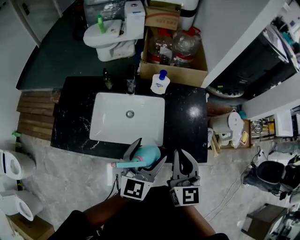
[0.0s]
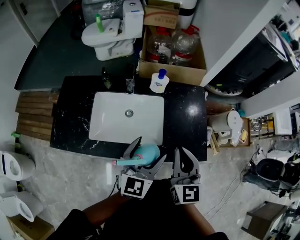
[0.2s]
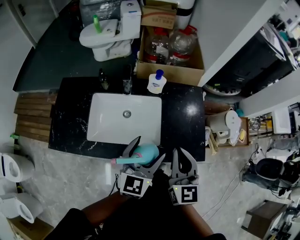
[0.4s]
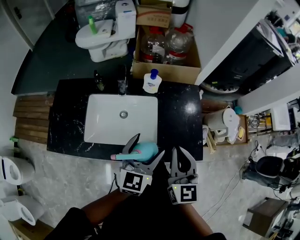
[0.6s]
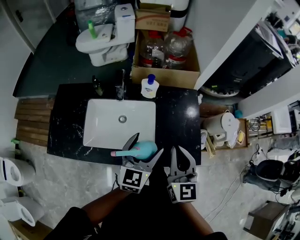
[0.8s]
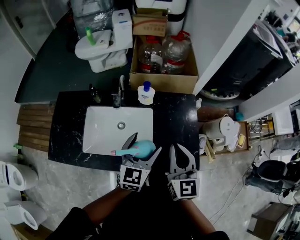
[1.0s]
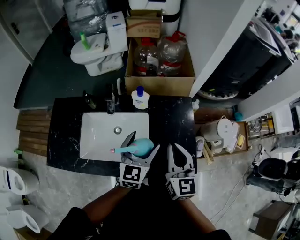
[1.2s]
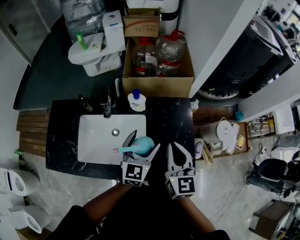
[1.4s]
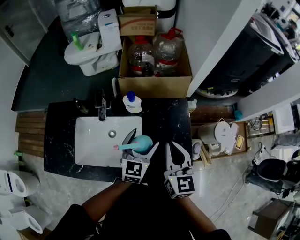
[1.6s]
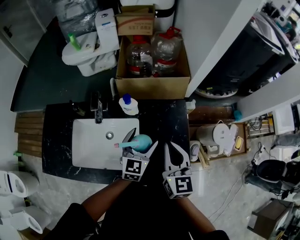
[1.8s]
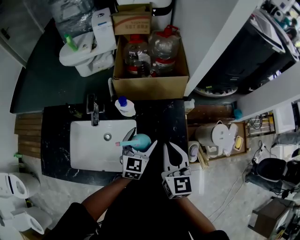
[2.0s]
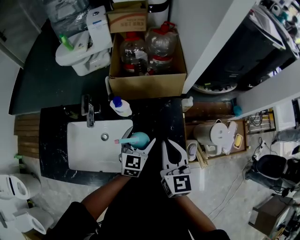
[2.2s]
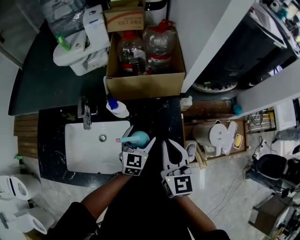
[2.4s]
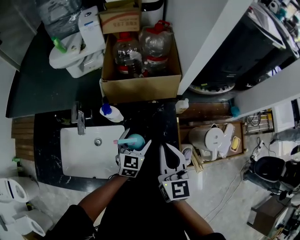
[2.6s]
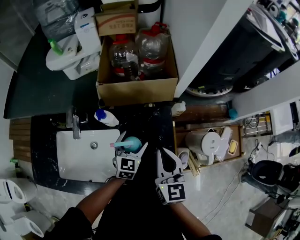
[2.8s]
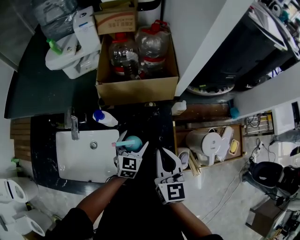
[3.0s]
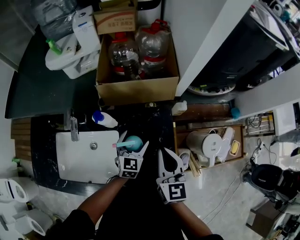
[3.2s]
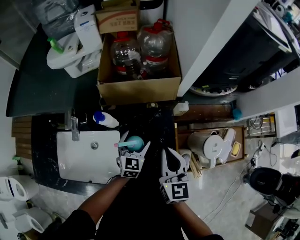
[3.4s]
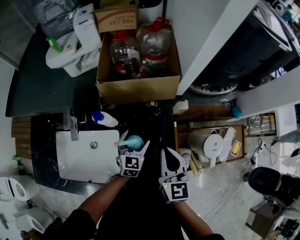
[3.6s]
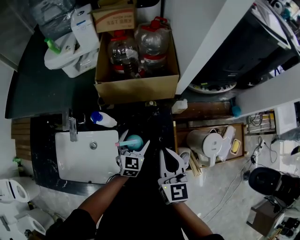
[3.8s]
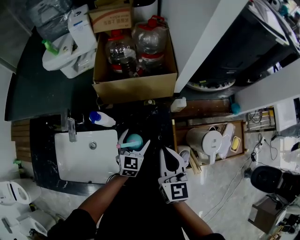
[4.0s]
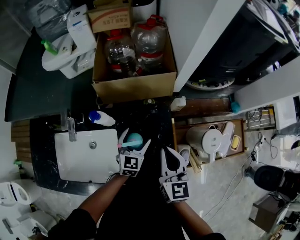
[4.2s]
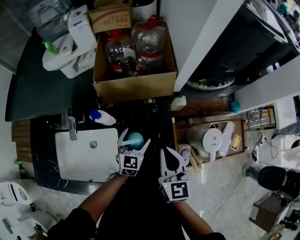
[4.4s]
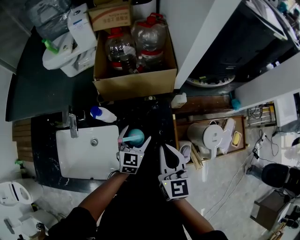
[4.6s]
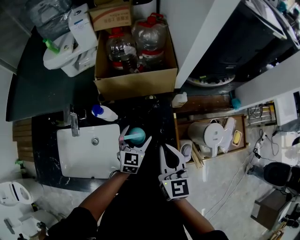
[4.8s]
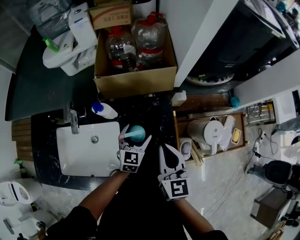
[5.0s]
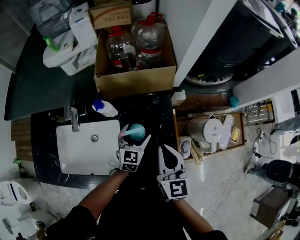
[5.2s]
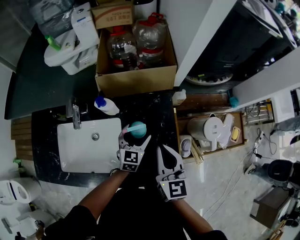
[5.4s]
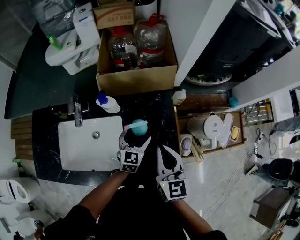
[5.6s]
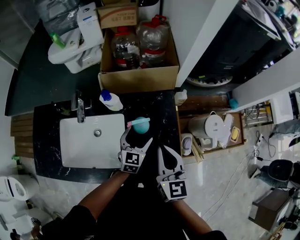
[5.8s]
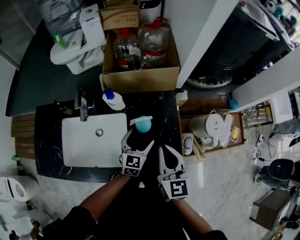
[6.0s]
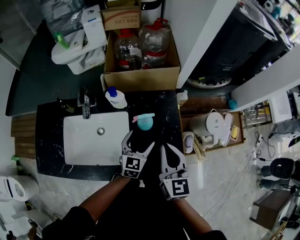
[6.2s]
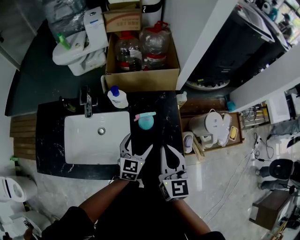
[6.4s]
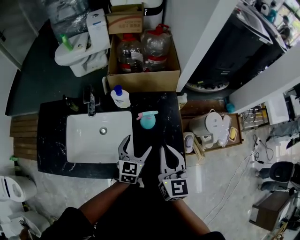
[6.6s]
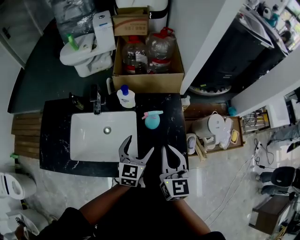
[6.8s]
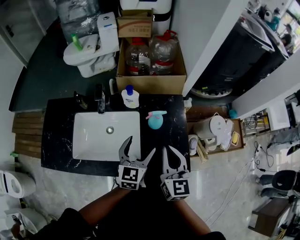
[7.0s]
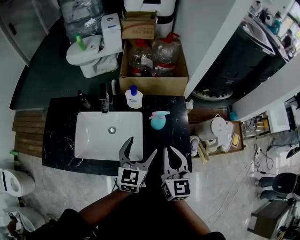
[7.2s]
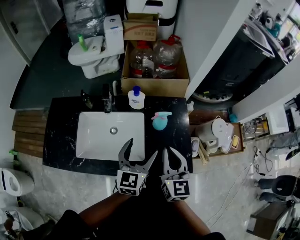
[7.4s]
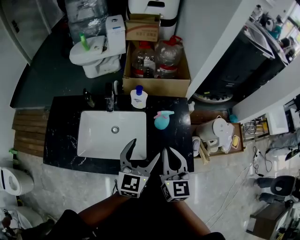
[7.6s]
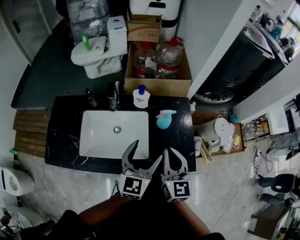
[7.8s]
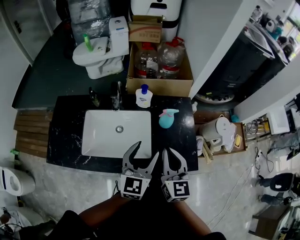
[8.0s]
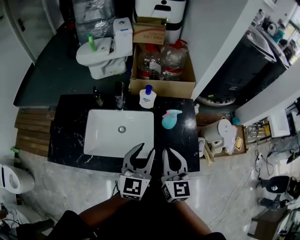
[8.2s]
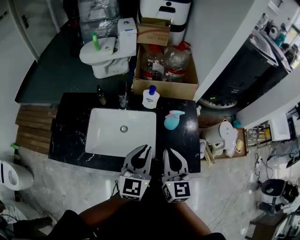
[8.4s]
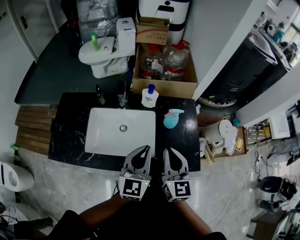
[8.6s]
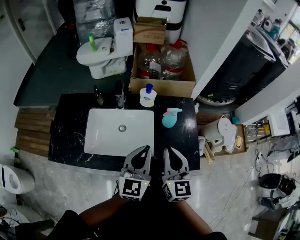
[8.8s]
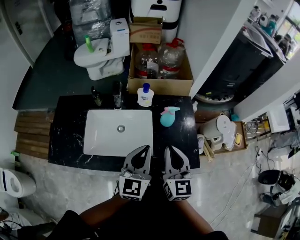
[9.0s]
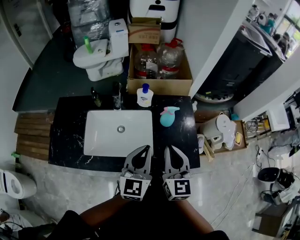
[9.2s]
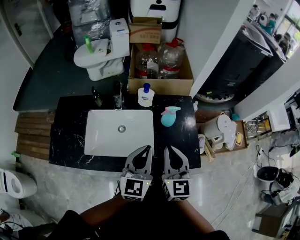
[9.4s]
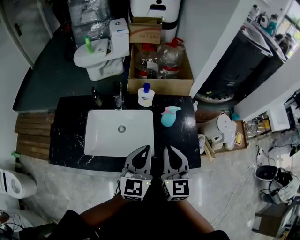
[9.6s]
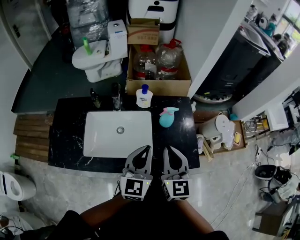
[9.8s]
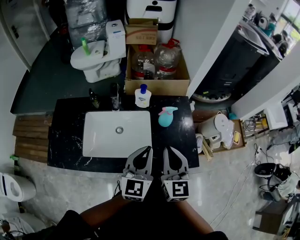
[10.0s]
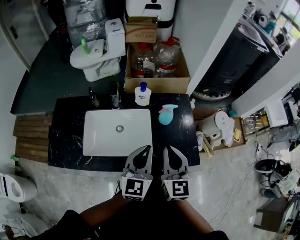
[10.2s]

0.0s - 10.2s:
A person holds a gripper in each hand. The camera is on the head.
0.0s - 1.4s: Both grippers travel together forward and to the right, roughly 15 cm.
1.4s - 3.0s: The right gripper shifts some 15 cm forward and to the right; the left gripper goes approximately 20 cm downward, forward and to the right.
3.0s - 4.4s: There are only small adjustments of the grippers.
4.4s - 5.8s: The two grippers go about 10 cm backward.
5.8s - 7.2s: The right gripper goes some 10 cm backward and to the left; the left gripper shifts roughly 20 cm upward, backward and to the left.
7.2s - 8.8s: The right gripper heads to the left, covering about 5 cm; the left gripper heads backward, upward and to the left, covering some 10 cm, and closes.
8.8s - 10.2s: The grippers make only small movements.

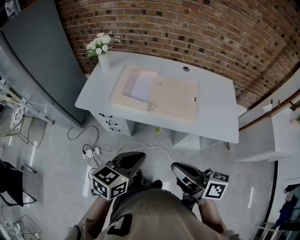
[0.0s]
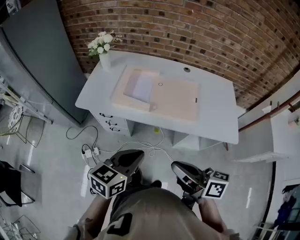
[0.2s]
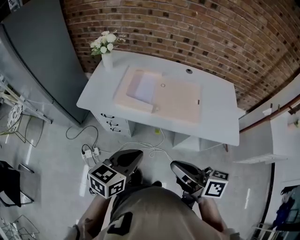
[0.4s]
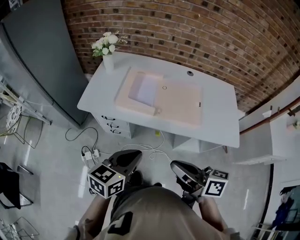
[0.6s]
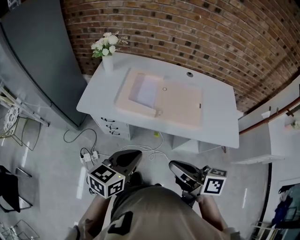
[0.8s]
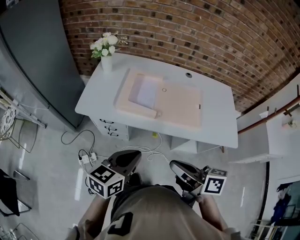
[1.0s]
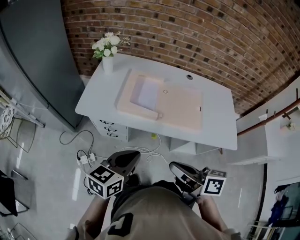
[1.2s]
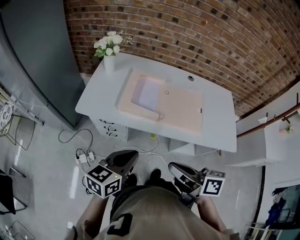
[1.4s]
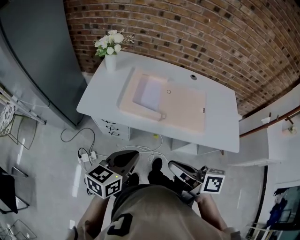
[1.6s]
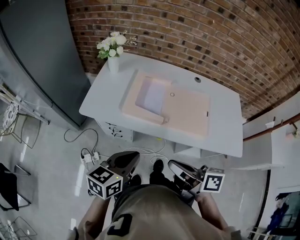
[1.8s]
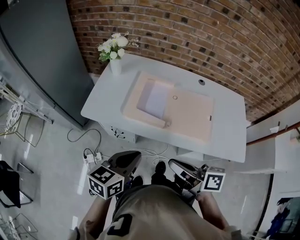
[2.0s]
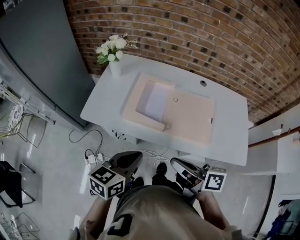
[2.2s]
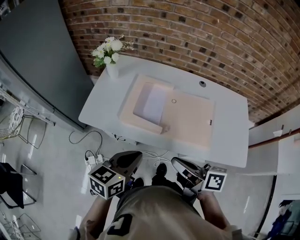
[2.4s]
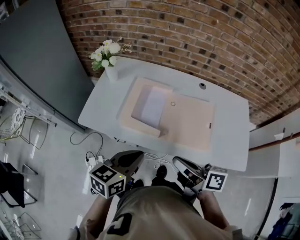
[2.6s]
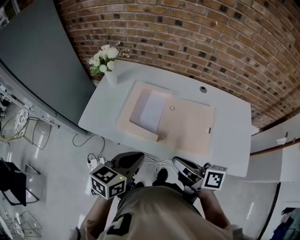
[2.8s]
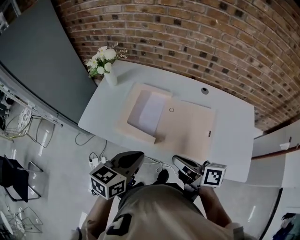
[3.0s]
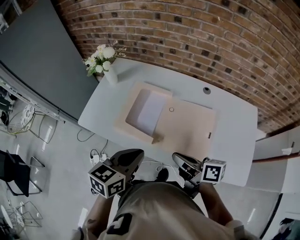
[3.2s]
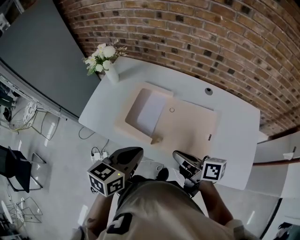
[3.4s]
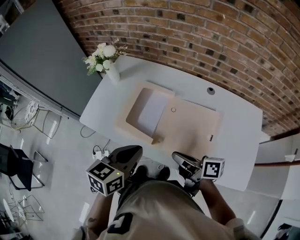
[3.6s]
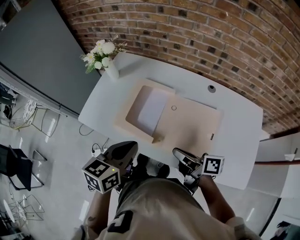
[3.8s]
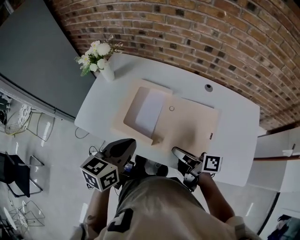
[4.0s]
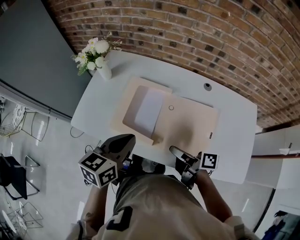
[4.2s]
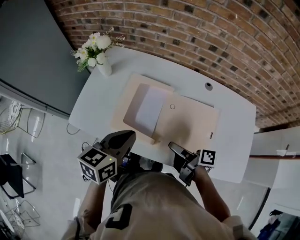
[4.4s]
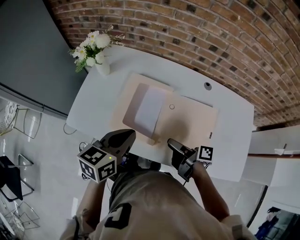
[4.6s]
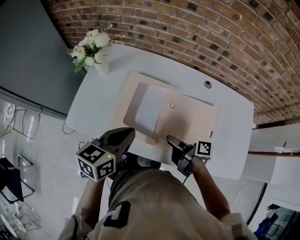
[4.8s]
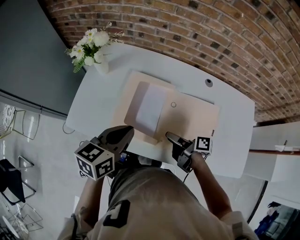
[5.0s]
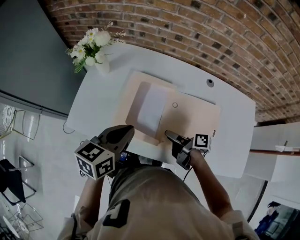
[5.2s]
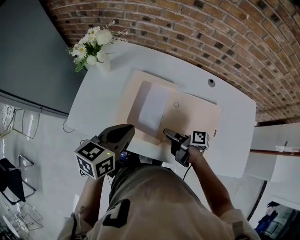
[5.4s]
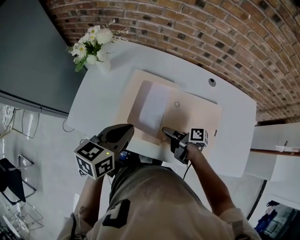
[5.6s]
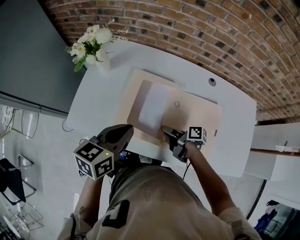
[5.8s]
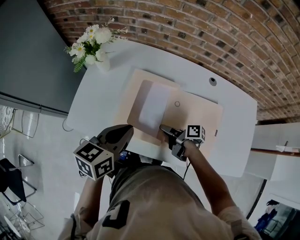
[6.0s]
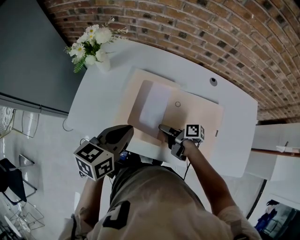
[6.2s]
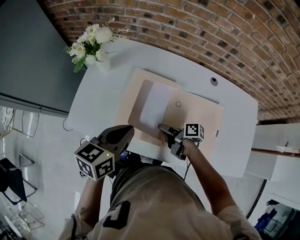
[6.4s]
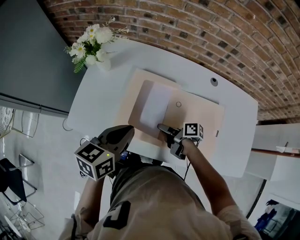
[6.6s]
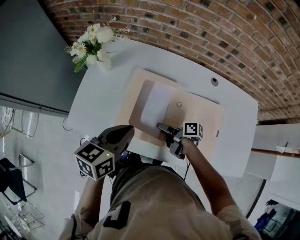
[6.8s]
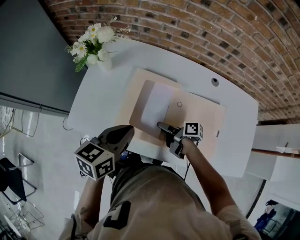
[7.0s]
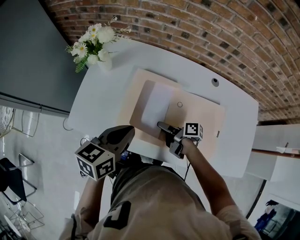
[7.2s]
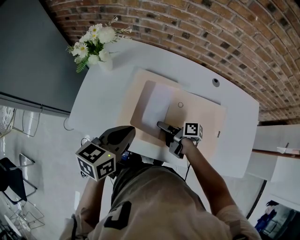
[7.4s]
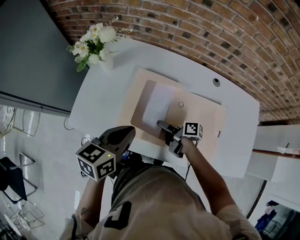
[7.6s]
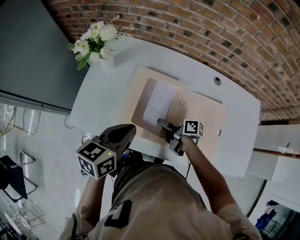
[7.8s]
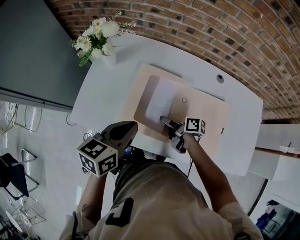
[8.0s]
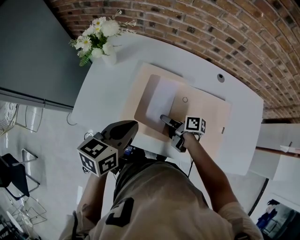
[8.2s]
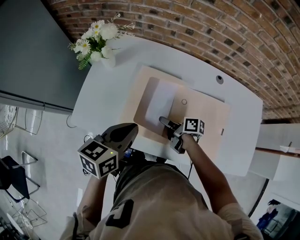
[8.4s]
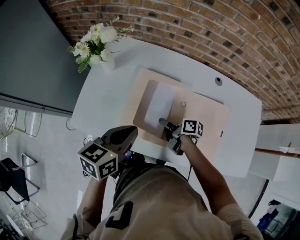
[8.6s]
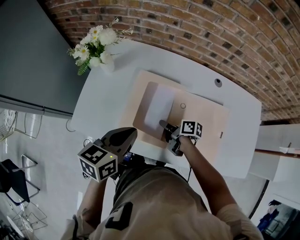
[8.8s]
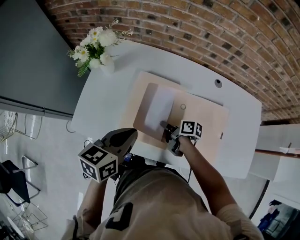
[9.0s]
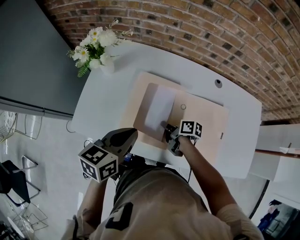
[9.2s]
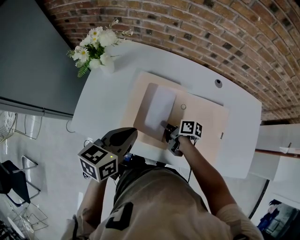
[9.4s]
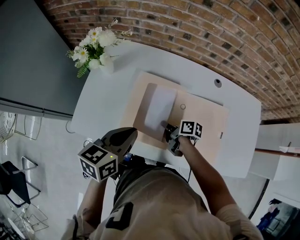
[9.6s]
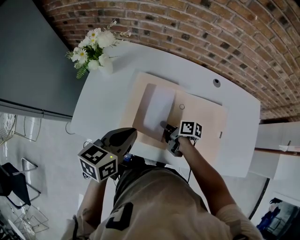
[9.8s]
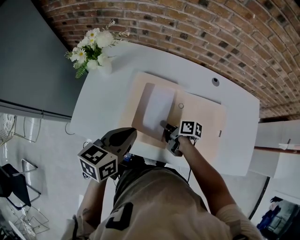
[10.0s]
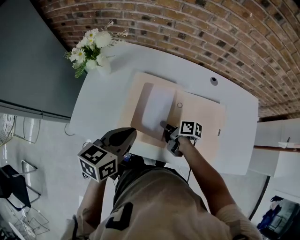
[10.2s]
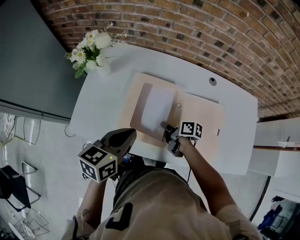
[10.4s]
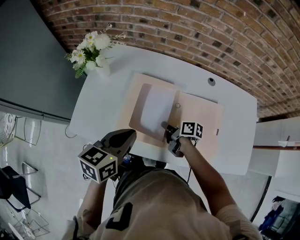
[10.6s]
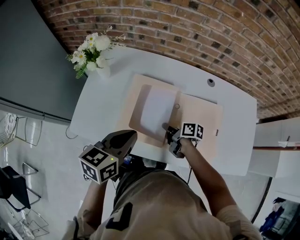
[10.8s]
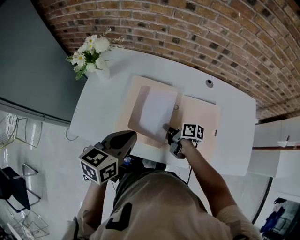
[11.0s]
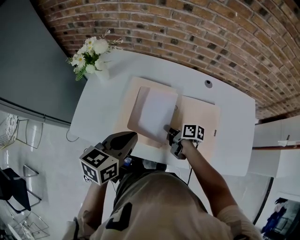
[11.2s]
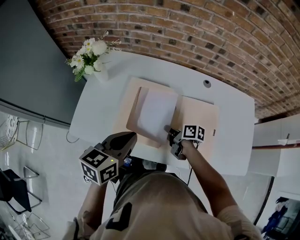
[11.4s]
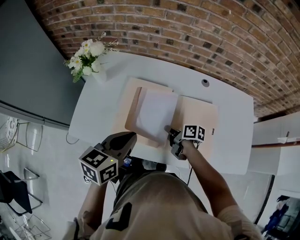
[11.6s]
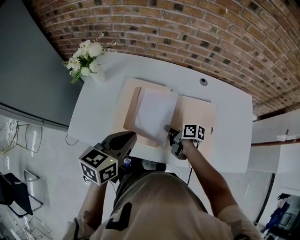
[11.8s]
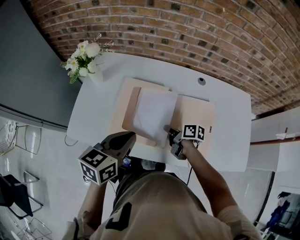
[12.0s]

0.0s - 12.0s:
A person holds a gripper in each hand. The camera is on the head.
0.0s - 1.6s: The left gripper changes place by some 15 cm.
1.6s - 3.0s: The left gripper ends up some 15 cm from where it was.
3.0s - 4.4s: The left gripper ends up about 10 cm from where it was.
4.4s - 6.0s: The left gripper shifts by about 5 cm.

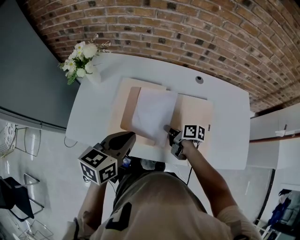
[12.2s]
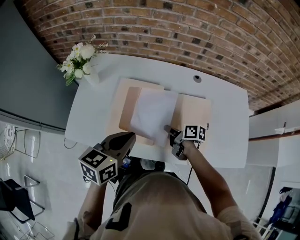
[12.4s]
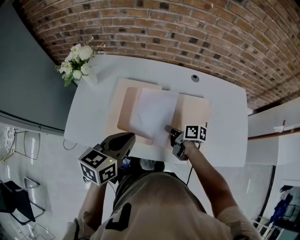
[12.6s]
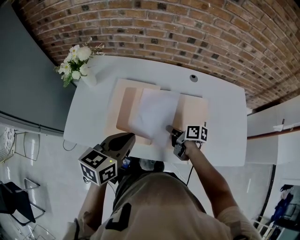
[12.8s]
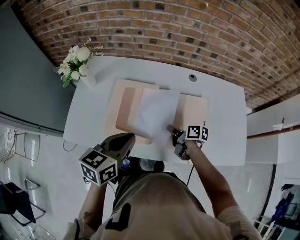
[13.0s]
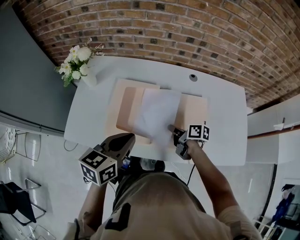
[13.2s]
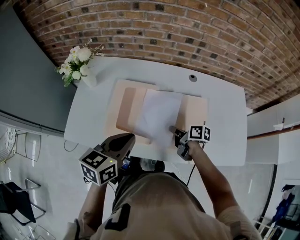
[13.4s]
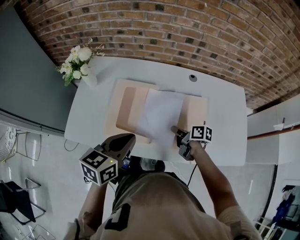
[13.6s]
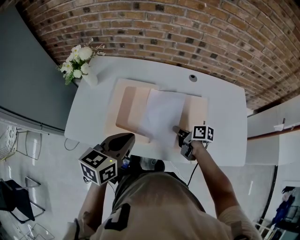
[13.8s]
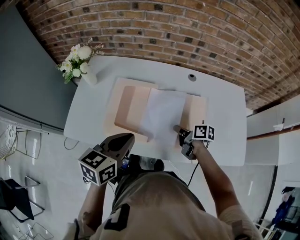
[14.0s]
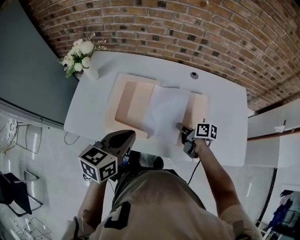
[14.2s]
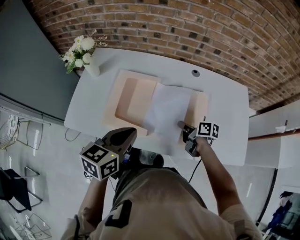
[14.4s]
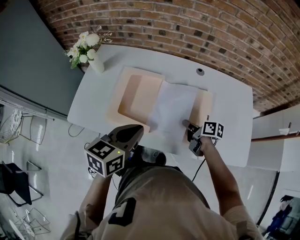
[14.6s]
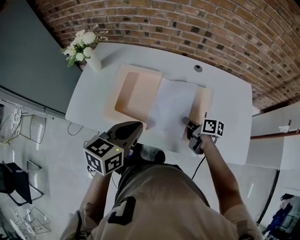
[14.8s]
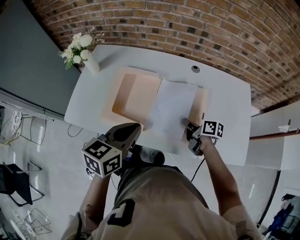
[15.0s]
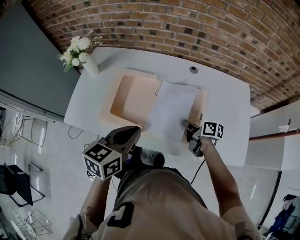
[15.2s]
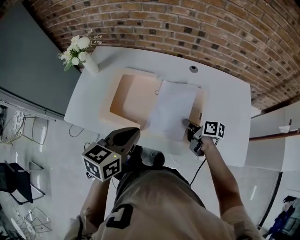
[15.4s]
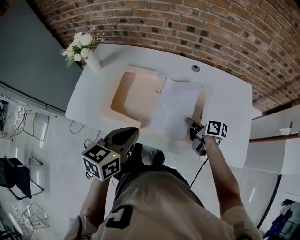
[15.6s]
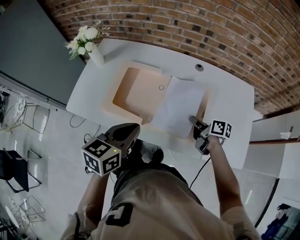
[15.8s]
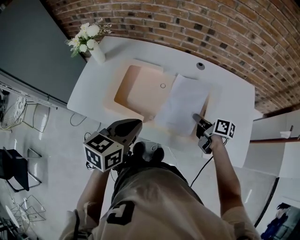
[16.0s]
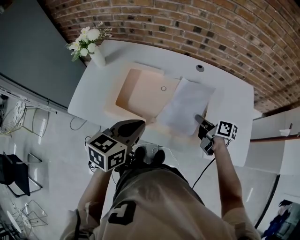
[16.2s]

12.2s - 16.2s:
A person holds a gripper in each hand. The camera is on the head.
13.6s - 14.8s: The left gripper ends up about 5 cm from where it was.
